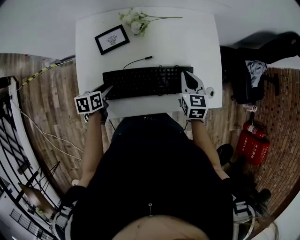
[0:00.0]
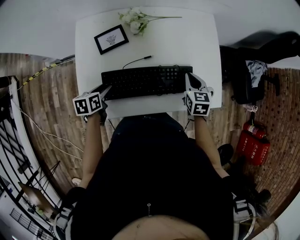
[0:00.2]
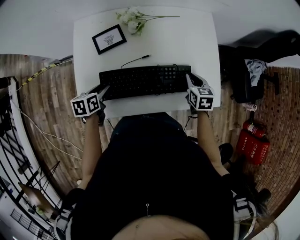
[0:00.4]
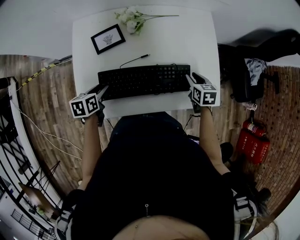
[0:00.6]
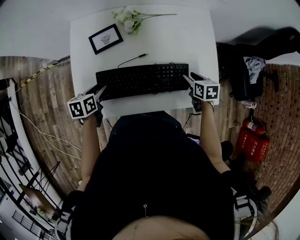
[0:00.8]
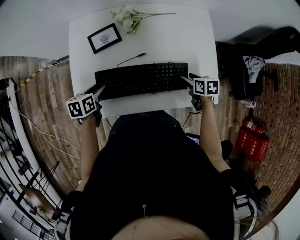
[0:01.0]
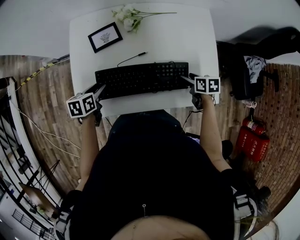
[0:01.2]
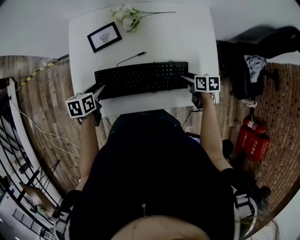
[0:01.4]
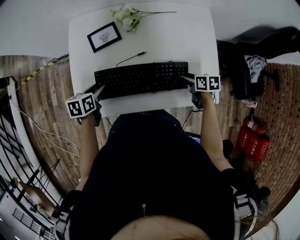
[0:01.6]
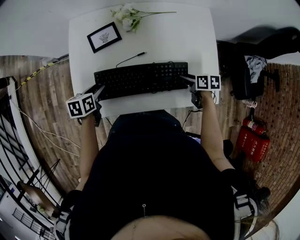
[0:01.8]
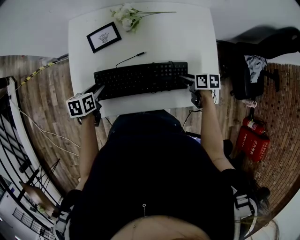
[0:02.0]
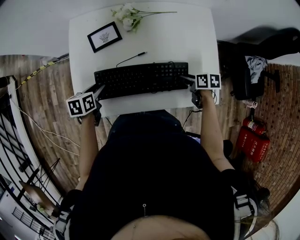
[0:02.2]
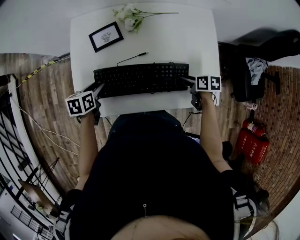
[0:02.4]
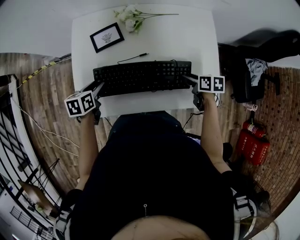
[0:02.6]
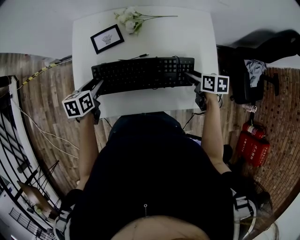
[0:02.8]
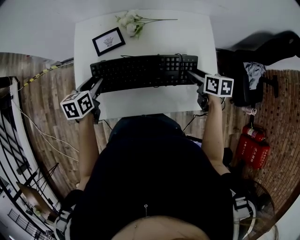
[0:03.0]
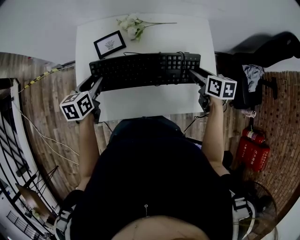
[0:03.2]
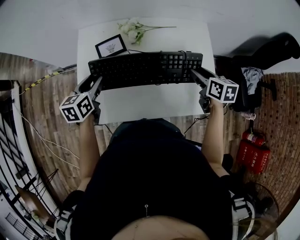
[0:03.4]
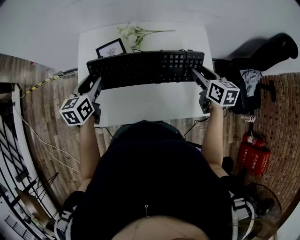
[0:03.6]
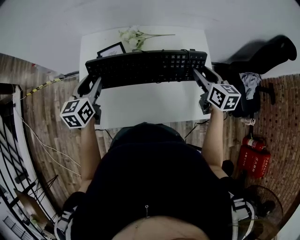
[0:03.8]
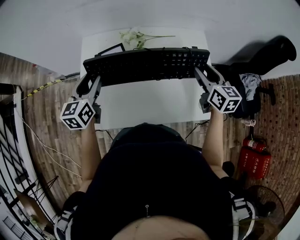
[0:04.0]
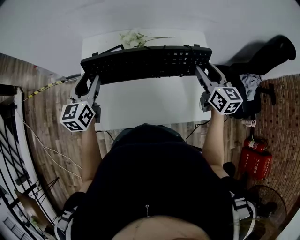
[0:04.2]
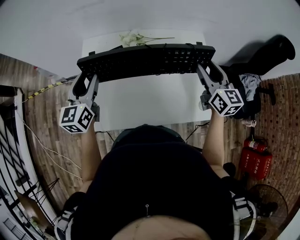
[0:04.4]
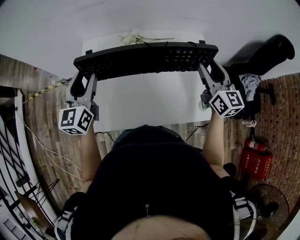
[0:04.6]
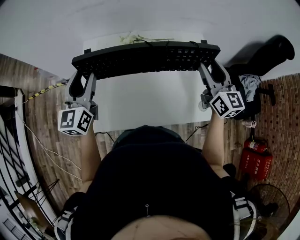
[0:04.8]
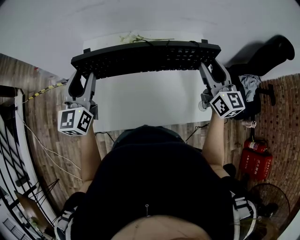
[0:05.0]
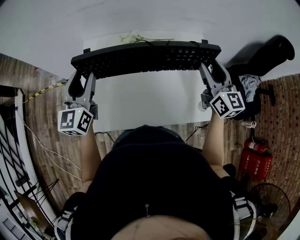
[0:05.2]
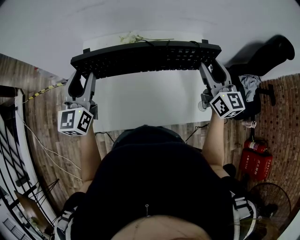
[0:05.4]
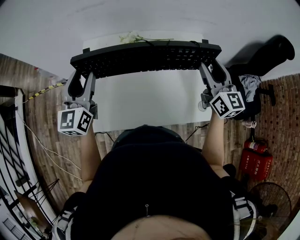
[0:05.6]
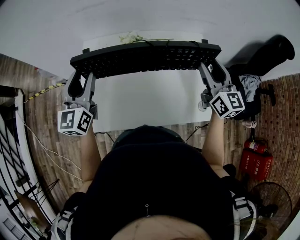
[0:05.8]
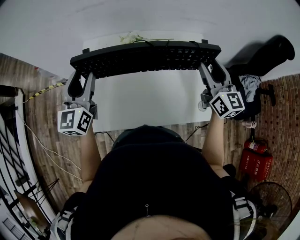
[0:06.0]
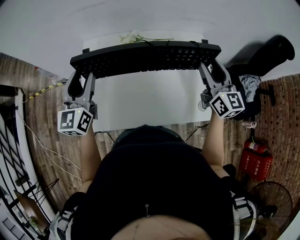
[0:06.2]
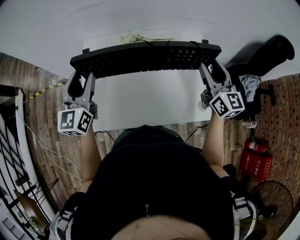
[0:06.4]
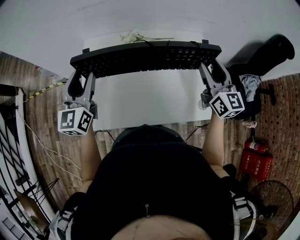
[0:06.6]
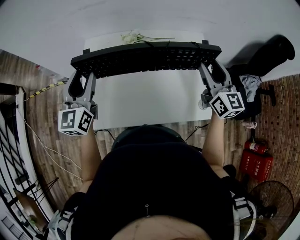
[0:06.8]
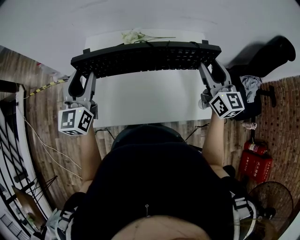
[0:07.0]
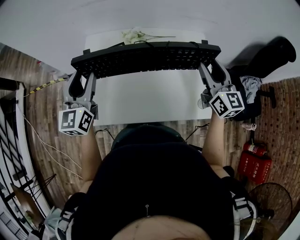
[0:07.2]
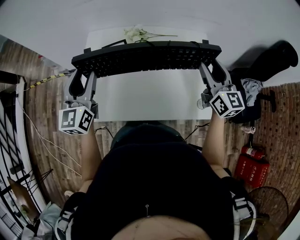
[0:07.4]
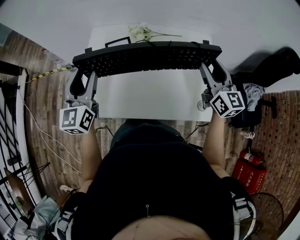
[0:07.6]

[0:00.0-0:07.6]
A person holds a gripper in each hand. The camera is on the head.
0:00.0 to 0:01.6: The right gripper goes about 15 cm downward and to the right, swivels roughly 50 degrees, and opens its fingers.
0:01.6 to 0:03.0: Both grippers move upward, some 10 cm.
0:03.0 to 0:04.6: The two grippers go roughly 20 cm upward. The right gripper tips its fingers upward by roughly 40 degrees, while the left gripper tips its fingers upward by approximately 40 degrees.
0:04.6 to 0:06.0: The grippers move only a little.
0:06.0 to 0:07.6: The left gripper is displaced backward by approximately 5 cm.

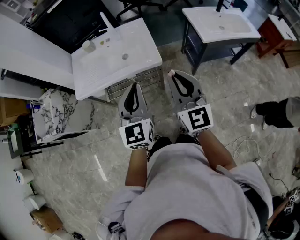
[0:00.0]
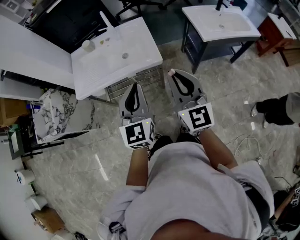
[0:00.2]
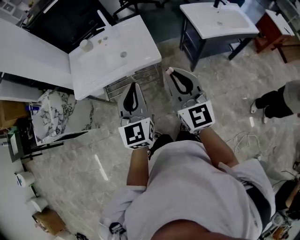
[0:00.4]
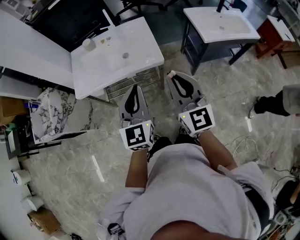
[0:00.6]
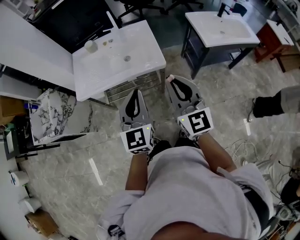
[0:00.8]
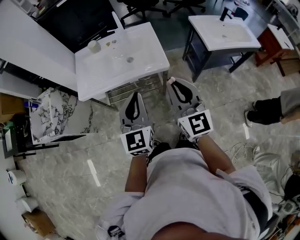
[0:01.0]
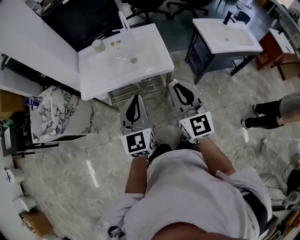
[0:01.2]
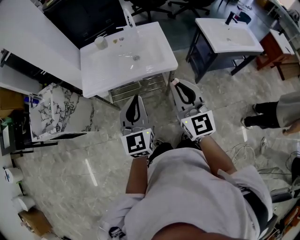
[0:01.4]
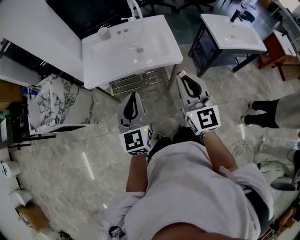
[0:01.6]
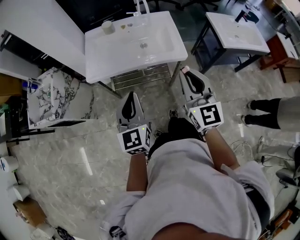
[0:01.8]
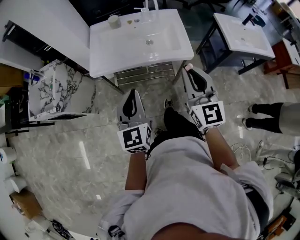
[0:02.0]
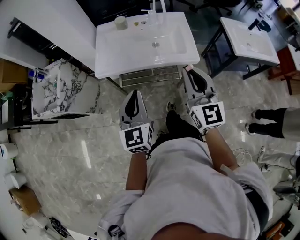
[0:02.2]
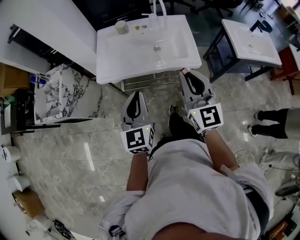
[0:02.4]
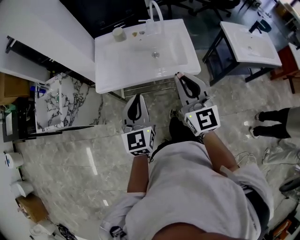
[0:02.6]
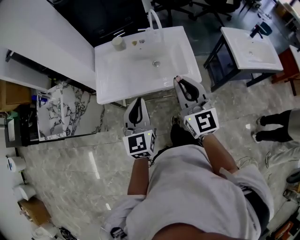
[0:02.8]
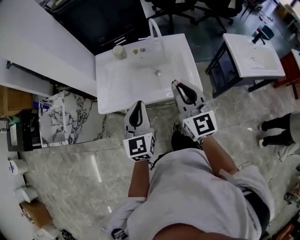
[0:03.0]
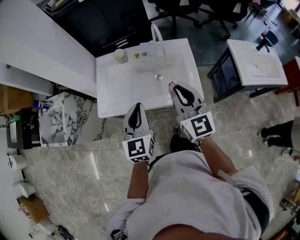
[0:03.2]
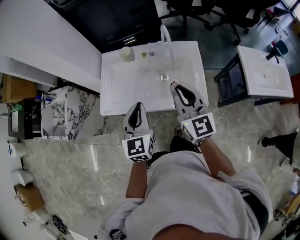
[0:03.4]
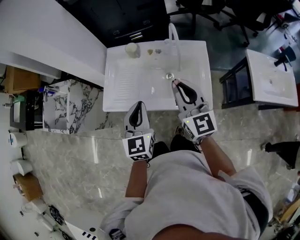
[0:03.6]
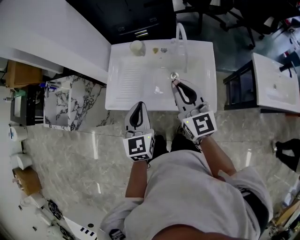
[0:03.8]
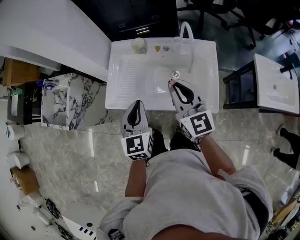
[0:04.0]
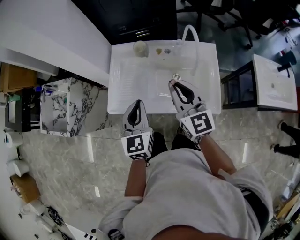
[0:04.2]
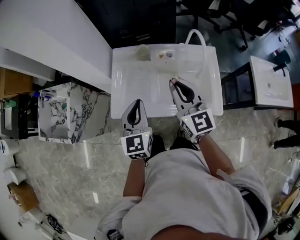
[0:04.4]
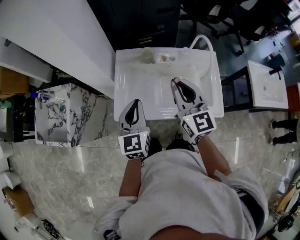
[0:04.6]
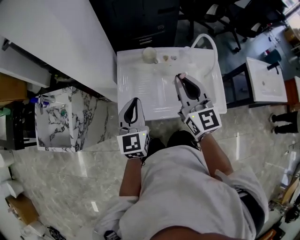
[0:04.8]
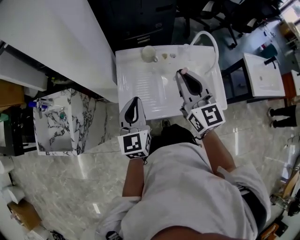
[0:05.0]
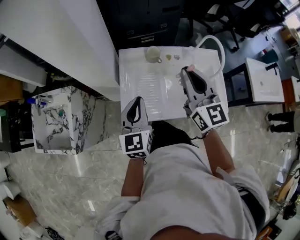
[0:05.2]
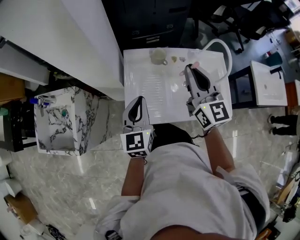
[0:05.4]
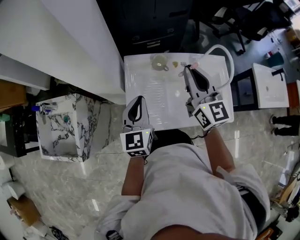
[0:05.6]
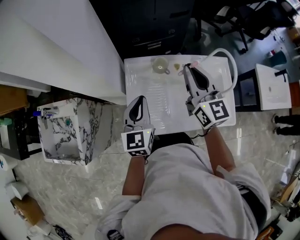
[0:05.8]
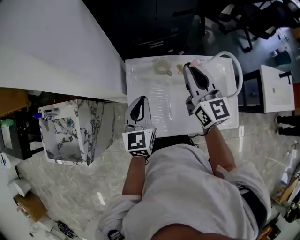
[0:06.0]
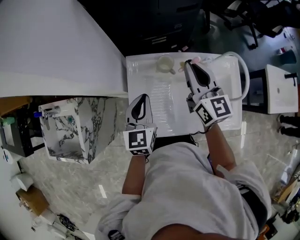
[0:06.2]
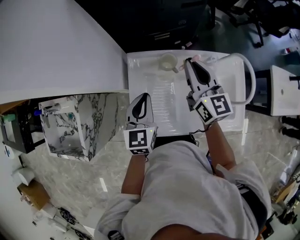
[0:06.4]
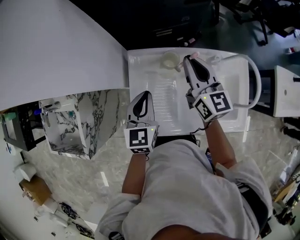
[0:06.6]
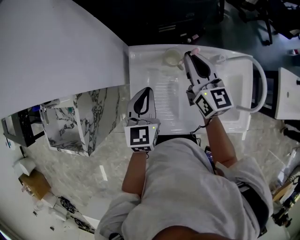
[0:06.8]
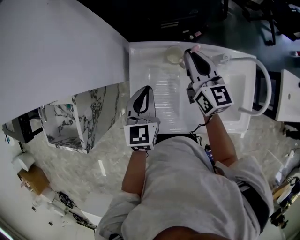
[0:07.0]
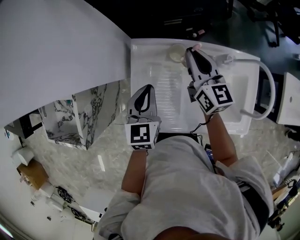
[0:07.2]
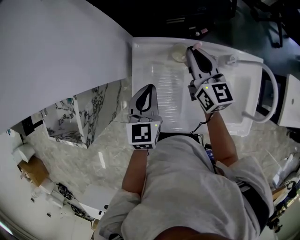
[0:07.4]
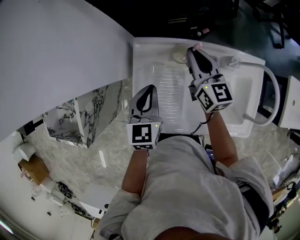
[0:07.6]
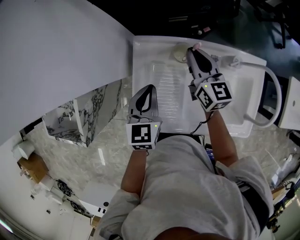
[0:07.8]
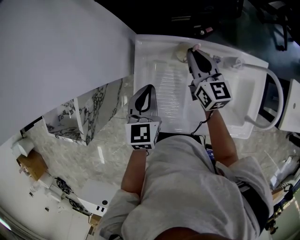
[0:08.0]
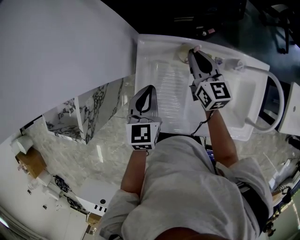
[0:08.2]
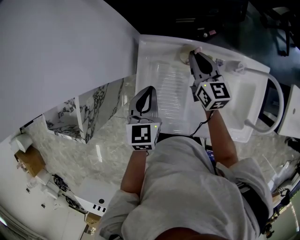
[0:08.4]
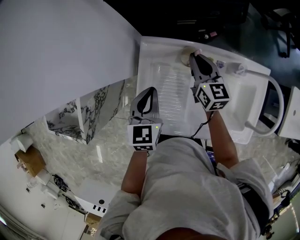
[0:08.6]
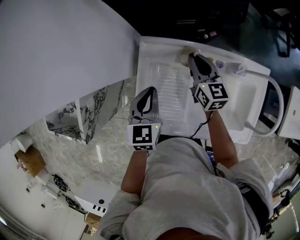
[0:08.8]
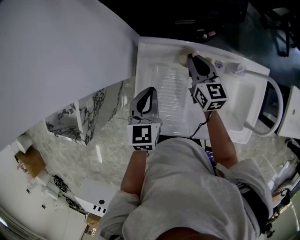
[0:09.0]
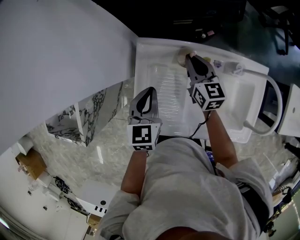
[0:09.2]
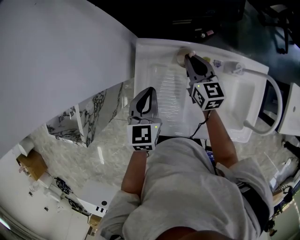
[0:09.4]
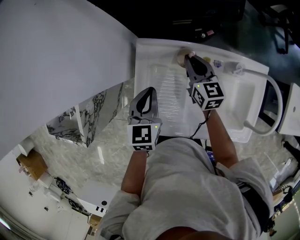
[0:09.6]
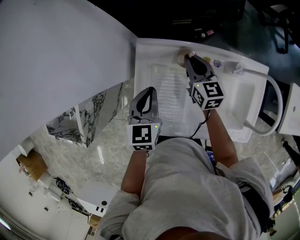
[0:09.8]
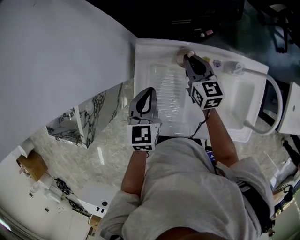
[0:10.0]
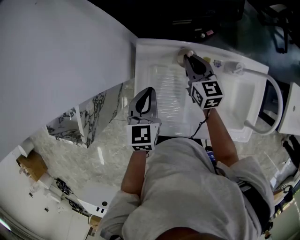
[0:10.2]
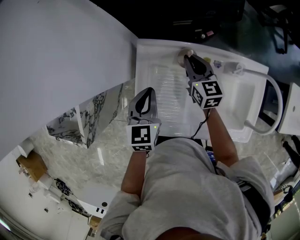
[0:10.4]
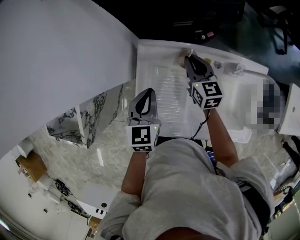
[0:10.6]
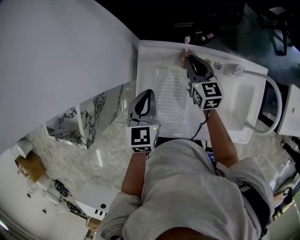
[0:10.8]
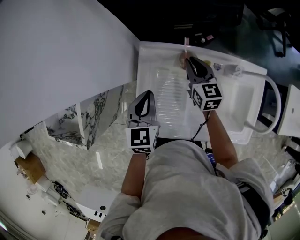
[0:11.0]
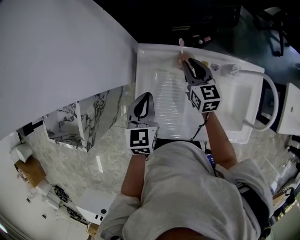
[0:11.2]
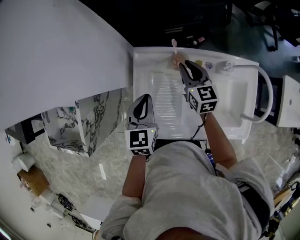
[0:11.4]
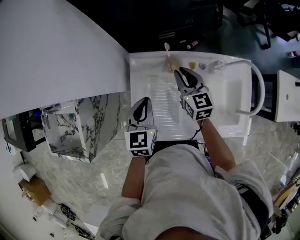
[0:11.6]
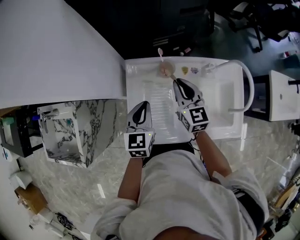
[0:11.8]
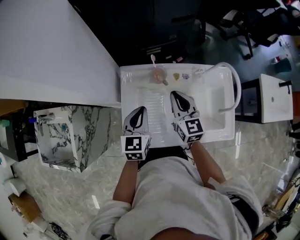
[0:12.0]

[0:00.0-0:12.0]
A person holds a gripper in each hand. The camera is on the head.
0:00.0 to 0:01.6: Both grippers move to the left, approximately 15 cm.
0:01.6 to 0:03.0: Both grippers move forward, some 20 cm.
0:03.0 to 0:04.4: The grippers both shift forward and to the left by roughly 20 cm.
0:04.4 to 0:06.0: The left gripper moves forward and to the left, approximately 20 cm, while the right gripper goes some 20 cm forward.
0:06.0 to 0:07.6: The right gripper moves downward and forward, approximately 20 cm, while the left gripper goes roughly 10 cm downward and forward.
0:07.6 to 0:09.0: The right gripper shifts about 5 cm downward.
0:09.0 to 0:10.4: The grippers move only a little.
0:10.4 to 0:12.0: The left gripper goes about 5 cm backward, while the right gripper is displaced backward and upward by some 15 cm.

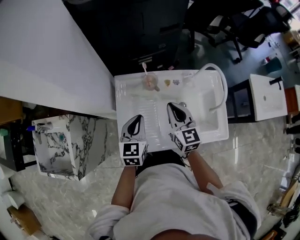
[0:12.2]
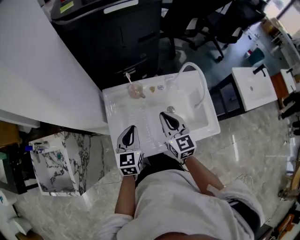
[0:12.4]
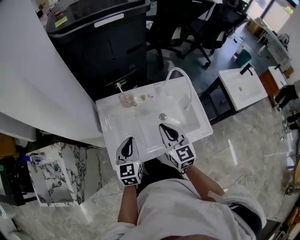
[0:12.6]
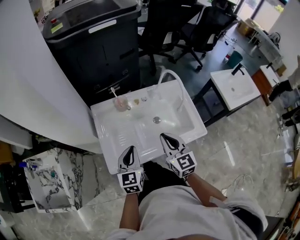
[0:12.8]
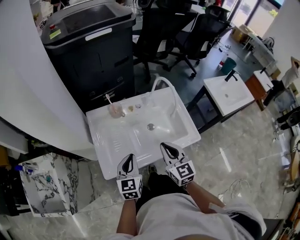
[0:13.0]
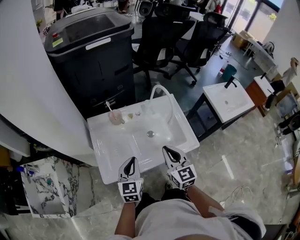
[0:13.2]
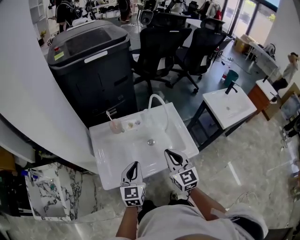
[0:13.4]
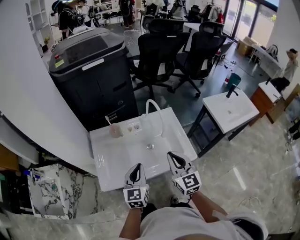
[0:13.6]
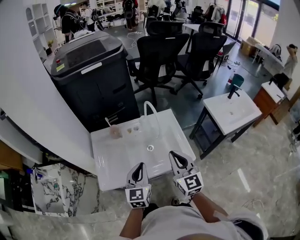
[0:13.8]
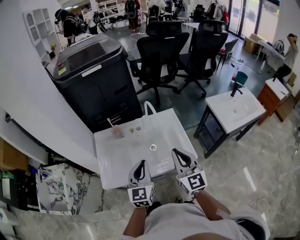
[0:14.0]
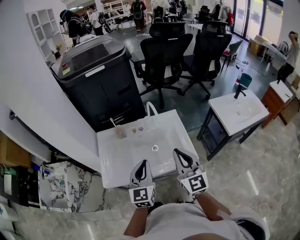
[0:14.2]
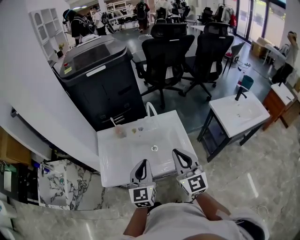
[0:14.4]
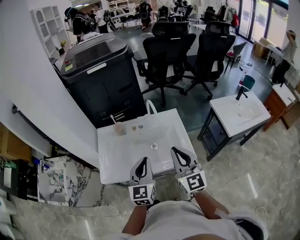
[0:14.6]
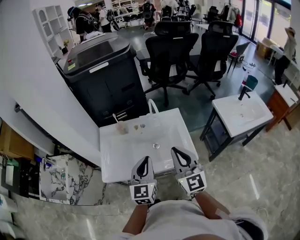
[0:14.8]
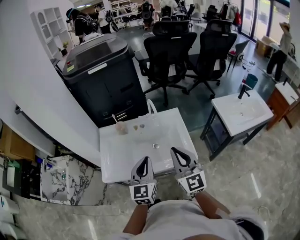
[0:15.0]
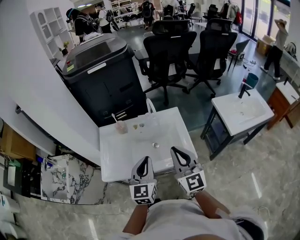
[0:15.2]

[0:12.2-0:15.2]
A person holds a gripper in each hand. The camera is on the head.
0:12.2 to 0:13.8: Both grippers travel together to the right, backward and upward, about 30 cm.
0:13.8 to 0:15.2: The left gripper travels to the right by approximately 5 cm. The right gripper ends up roughly 5 cm from where it was.

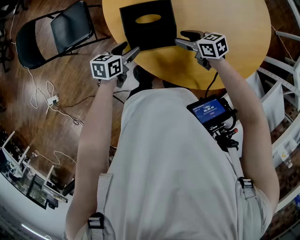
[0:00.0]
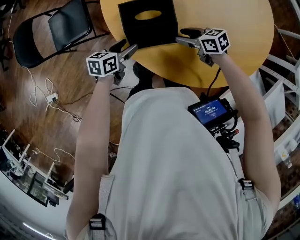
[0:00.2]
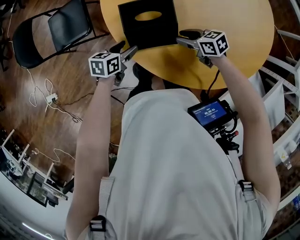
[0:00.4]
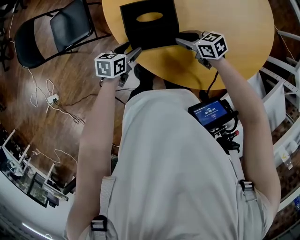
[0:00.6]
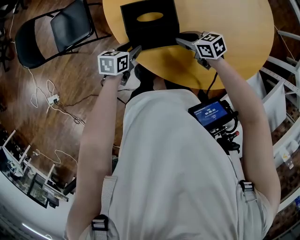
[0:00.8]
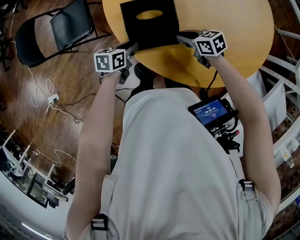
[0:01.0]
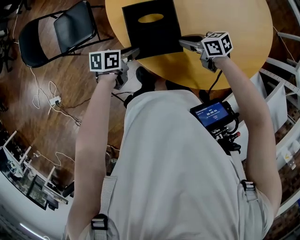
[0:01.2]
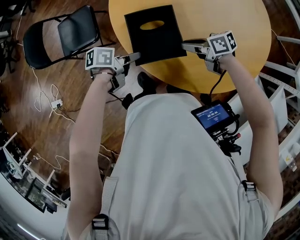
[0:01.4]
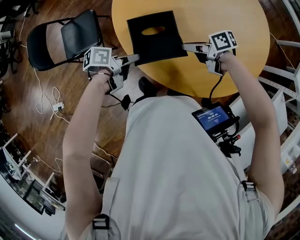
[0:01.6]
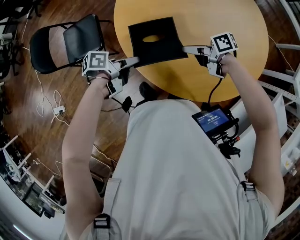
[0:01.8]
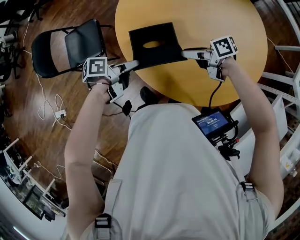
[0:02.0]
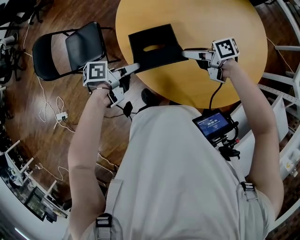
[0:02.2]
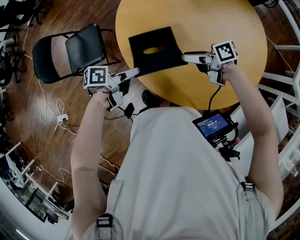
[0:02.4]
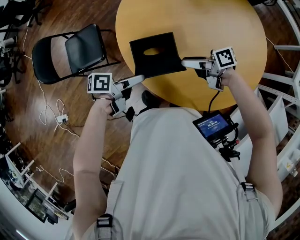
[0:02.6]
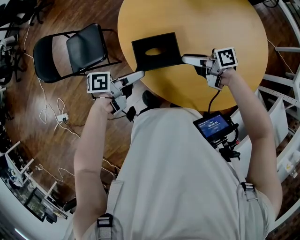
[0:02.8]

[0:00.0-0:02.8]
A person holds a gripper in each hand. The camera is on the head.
0:00.0 to 0:01.4: The left gripper turns by about 30 degrees, and closes. Meanwhile the right gripper shifts by some 5 cm, and closes its fingers.
0:01.4 to 0:02.8: Both grippers travel together upward, some 10 cm. The right gripper opens, while the left gripper opens.
